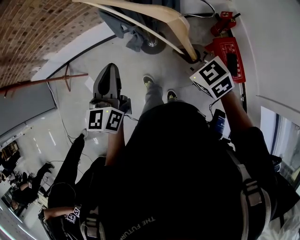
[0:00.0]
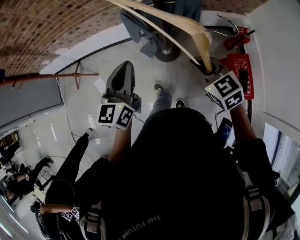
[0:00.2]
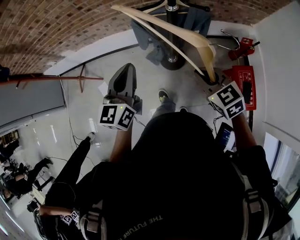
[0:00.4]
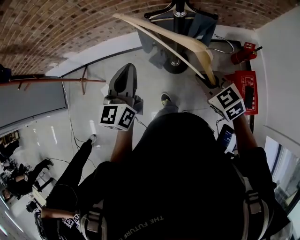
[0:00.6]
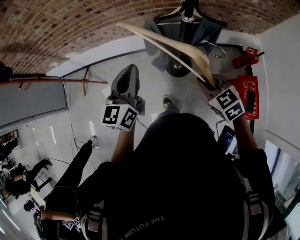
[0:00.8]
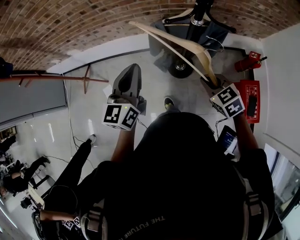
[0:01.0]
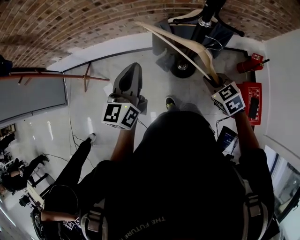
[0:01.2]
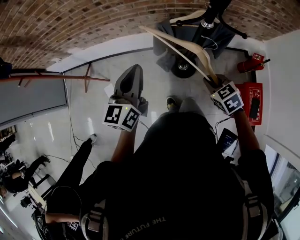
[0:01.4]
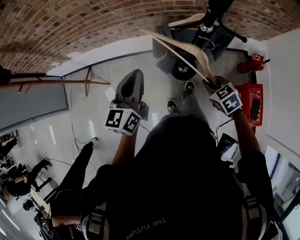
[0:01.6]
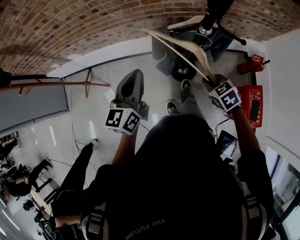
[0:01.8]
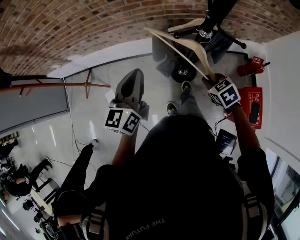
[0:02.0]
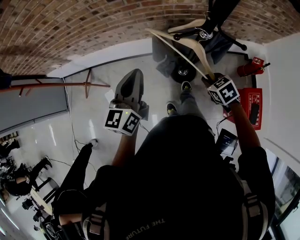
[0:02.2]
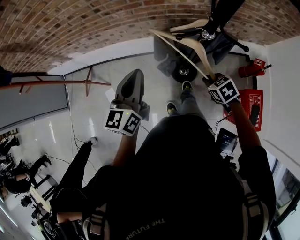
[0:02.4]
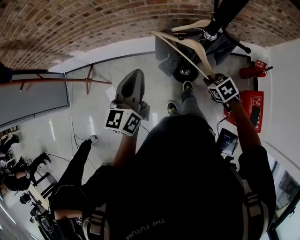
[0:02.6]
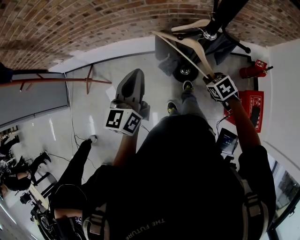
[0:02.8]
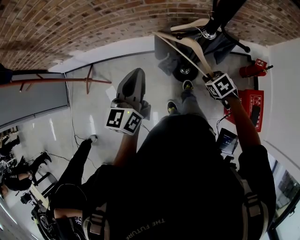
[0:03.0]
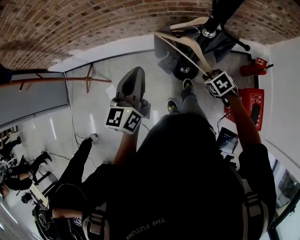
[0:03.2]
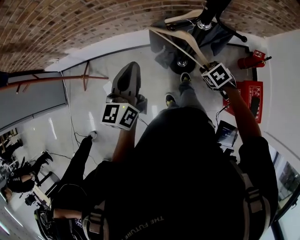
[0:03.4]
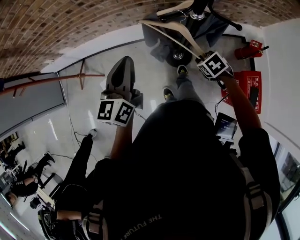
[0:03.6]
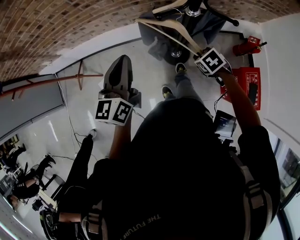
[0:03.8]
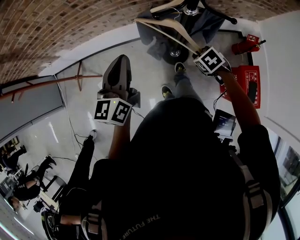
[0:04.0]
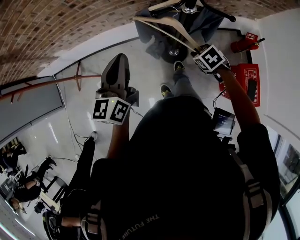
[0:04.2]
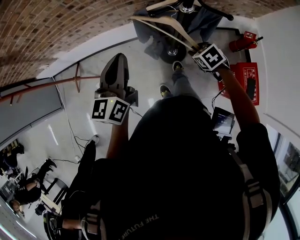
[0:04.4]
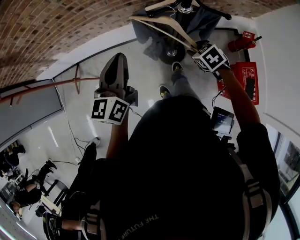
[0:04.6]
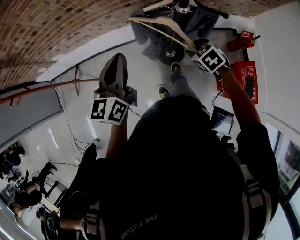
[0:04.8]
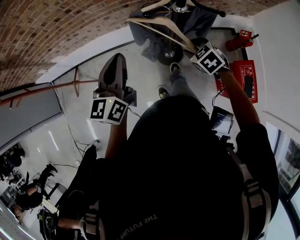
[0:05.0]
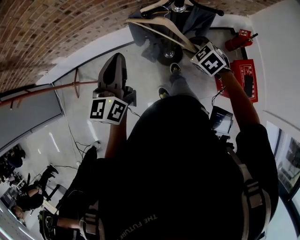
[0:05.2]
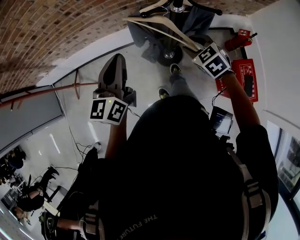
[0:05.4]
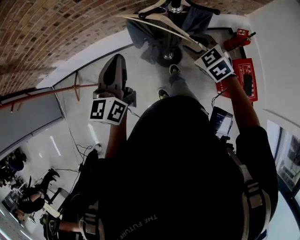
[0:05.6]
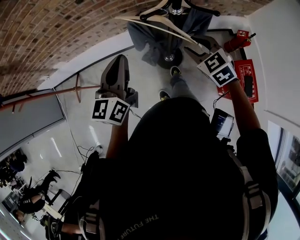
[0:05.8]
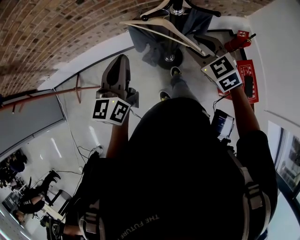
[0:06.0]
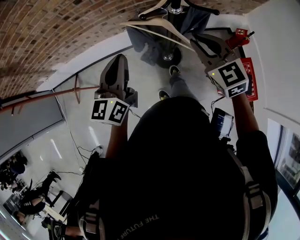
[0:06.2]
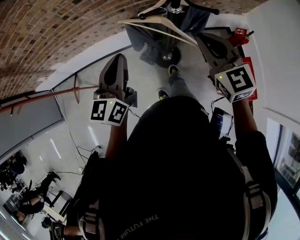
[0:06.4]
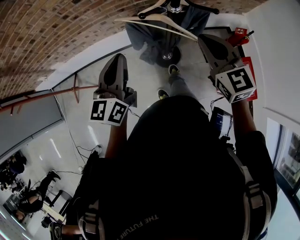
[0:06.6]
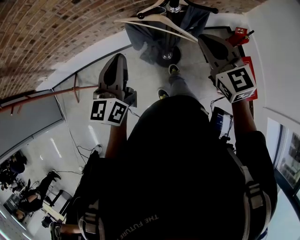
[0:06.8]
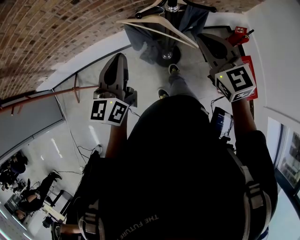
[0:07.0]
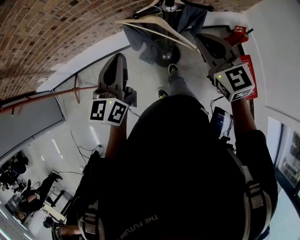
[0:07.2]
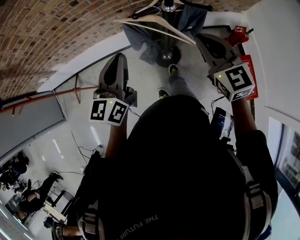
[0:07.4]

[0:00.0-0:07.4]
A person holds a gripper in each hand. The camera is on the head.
0:00.0 to 0:01.4: The right gripper heads forward, downward and to the left, covering some 20 cm; the left gripper goes approximately 25 cm forward and to the left.
0:01.4 to 0:03.0: The right gripper is displaced downward and forward by some 10 cm.
0:03.0 to 0:04.4: The grippers move only a little.
0:04.4 to 0:06.0: The right gripper heads upward, covering approximately 15 cm, swivels some 30 degrees, and opens.
0:06.0 to 0:07.4: The right gripper is displaced upward by approximately 5 cm, changes its angle by some 20 degrees, and closes.

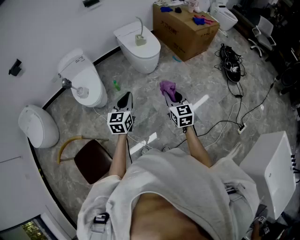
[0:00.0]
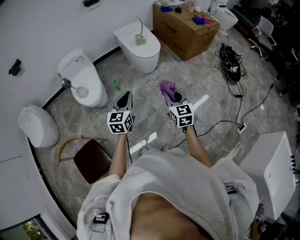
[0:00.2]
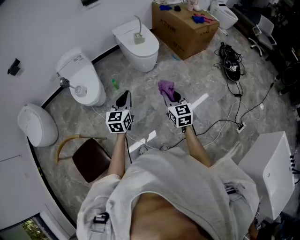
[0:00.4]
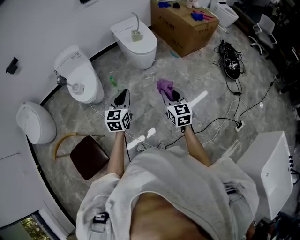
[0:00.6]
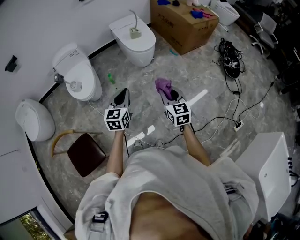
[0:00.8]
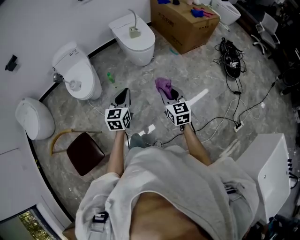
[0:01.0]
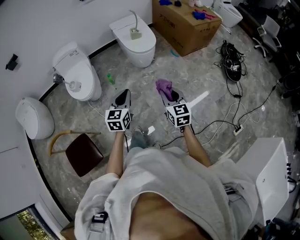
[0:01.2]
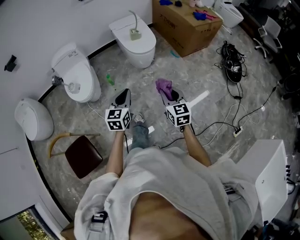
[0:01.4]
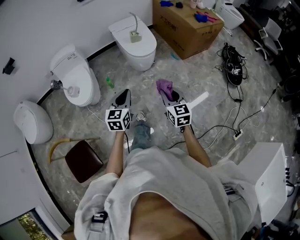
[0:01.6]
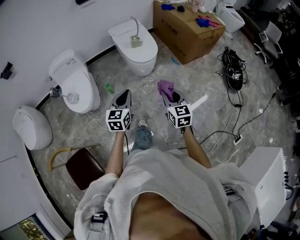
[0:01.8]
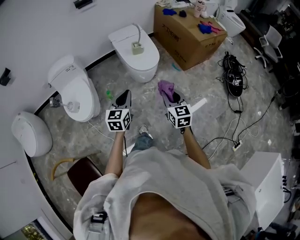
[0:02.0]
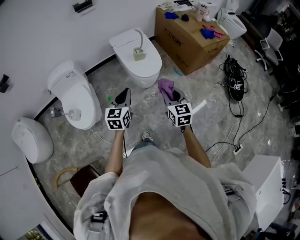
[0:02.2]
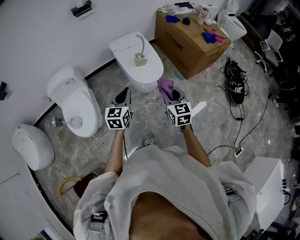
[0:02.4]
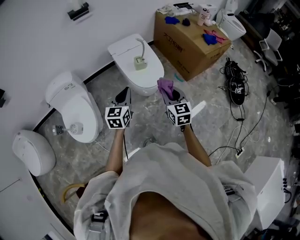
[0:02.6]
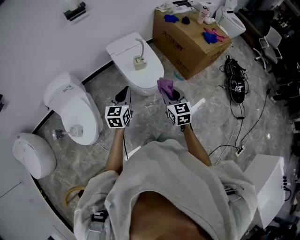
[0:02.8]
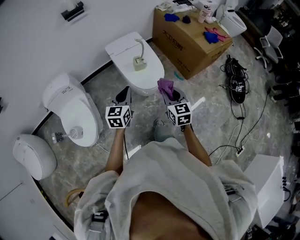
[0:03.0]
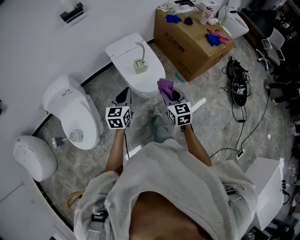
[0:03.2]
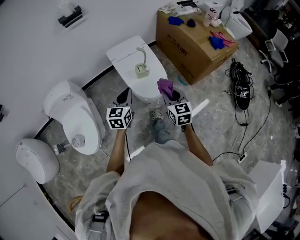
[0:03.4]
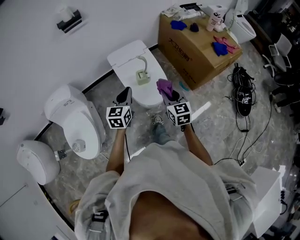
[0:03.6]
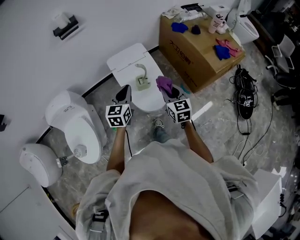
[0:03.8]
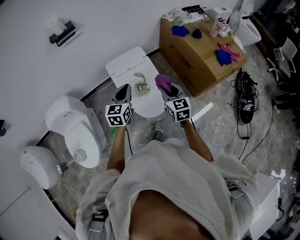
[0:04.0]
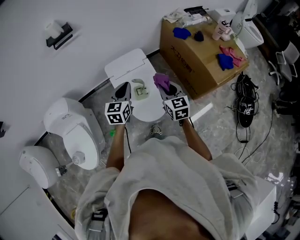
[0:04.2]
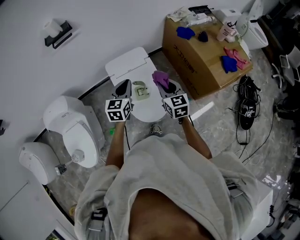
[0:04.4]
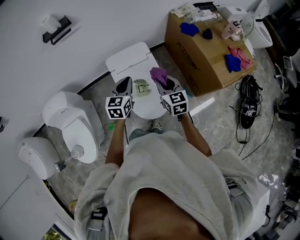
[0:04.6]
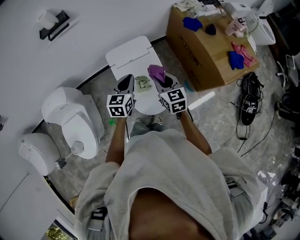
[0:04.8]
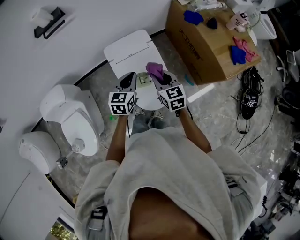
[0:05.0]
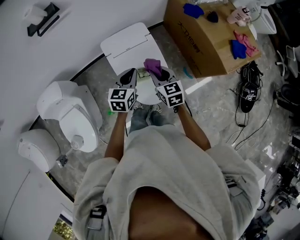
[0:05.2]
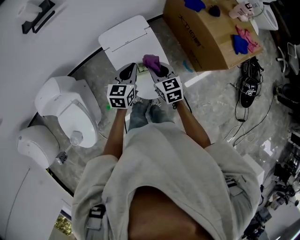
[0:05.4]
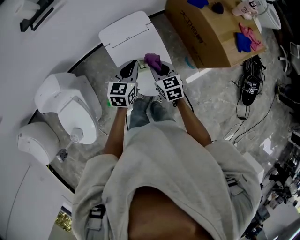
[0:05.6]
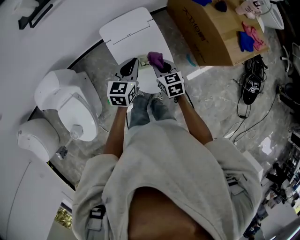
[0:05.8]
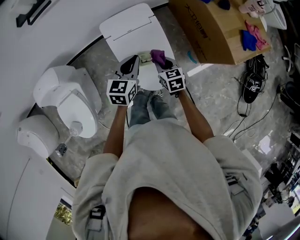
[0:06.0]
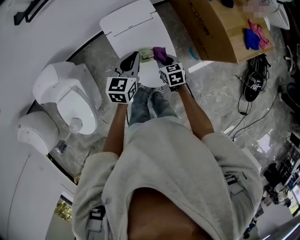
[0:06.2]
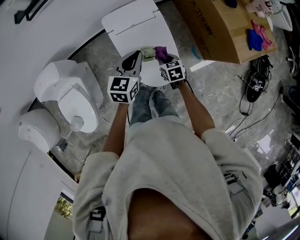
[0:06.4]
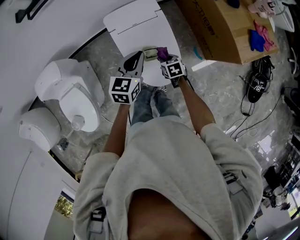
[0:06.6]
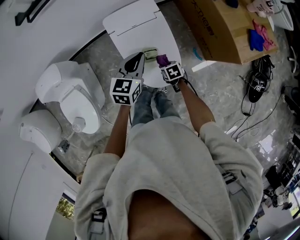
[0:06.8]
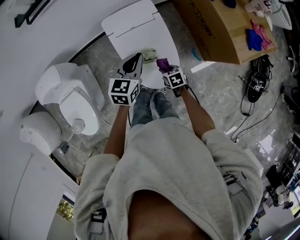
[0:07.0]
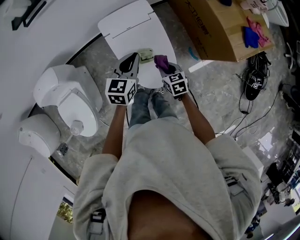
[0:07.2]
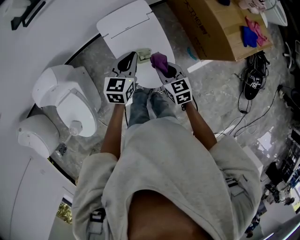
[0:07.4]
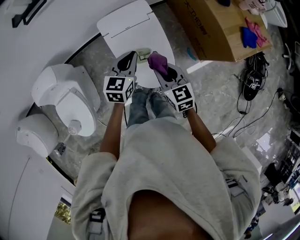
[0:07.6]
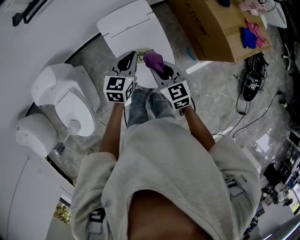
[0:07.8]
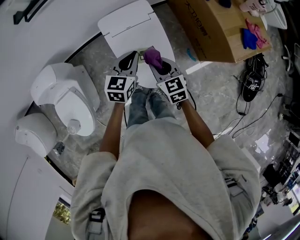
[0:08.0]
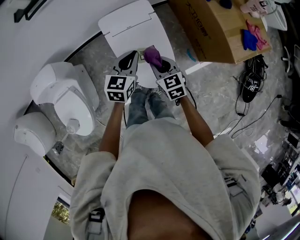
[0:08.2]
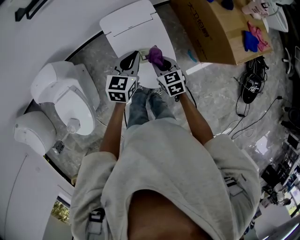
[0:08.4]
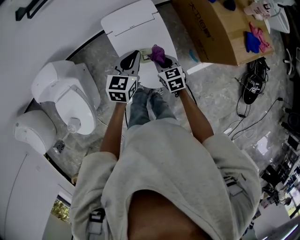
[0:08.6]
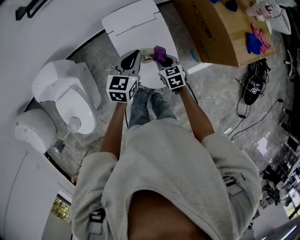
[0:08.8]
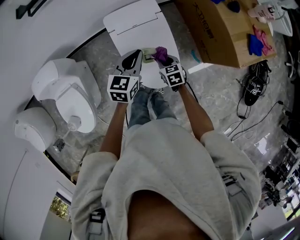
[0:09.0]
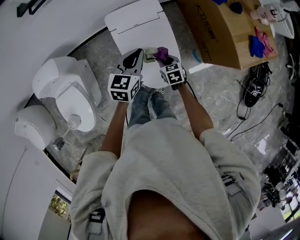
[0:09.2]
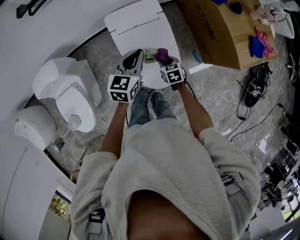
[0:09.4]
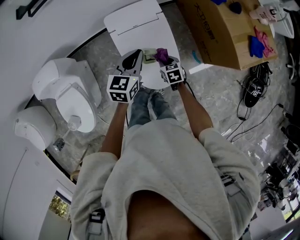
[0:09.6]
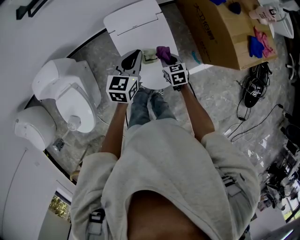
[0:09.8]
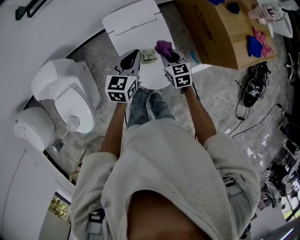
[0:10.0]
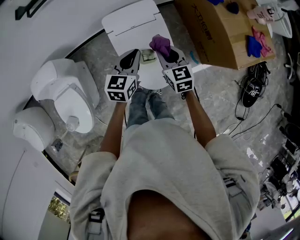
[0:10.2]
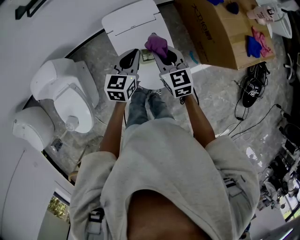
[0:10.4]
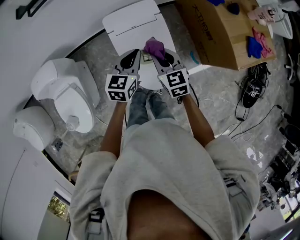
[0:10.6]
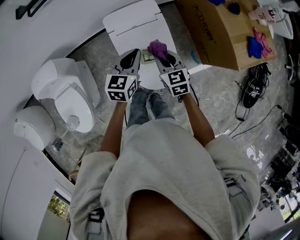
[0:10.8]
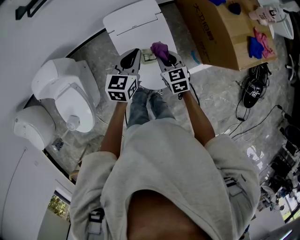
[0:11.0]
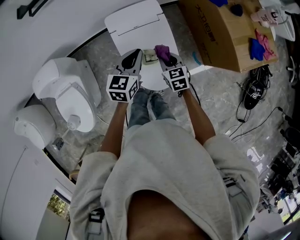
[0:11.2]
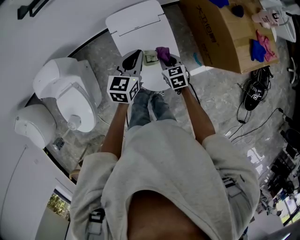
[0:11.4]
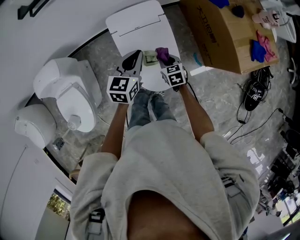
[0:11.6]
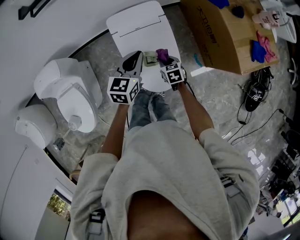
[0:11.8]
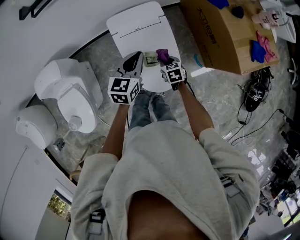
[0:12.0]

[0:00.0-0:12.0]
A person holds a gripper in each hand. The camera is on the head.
0:00.0 to 0:01.6: The left gripper travels to the right and forward by about 10 cm, while the right gripper is displaced forward and to the right by roughly 10 cm.
0:01.6 to 0:03.0: Both grippers travel together forward, about 35 cm.
0:03.0 to 0:04.4: The two grippers go approximately 35 cm forward.
0:04.4 to 0:06.0: The left gripper travels downward by roughly 5 cm; the right gripper heads downward, covering about 15 cm, and swivels roughly 20 degrees.
0:06.0 to 0:07.6: The right gripper moves upward, roughly 10 cm.
0:07.6 to 0:09.0: The right gripper shifts approximately 15 cm downward, and swivels approximately 20 degrees.
0:09.0 to 0:10.4: The right gripper moves upward, some 20 cm, and rotates some 20 degrees.
0:10.4 to 0:12.0: The right gripper heads downward, covering approximately 20 cm, and changes its angle by approximately 30 degrees.

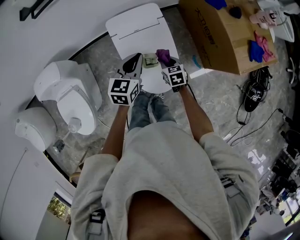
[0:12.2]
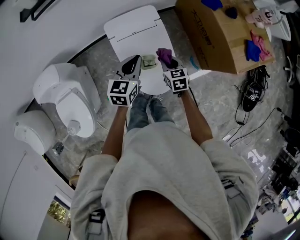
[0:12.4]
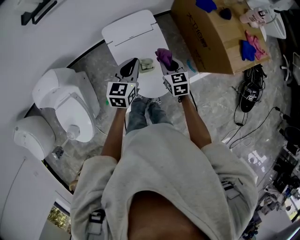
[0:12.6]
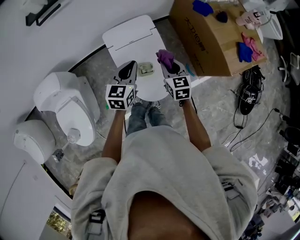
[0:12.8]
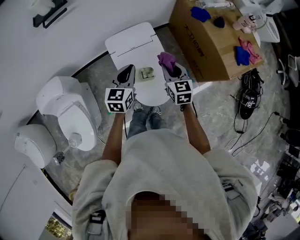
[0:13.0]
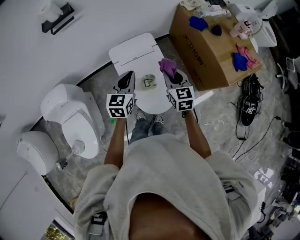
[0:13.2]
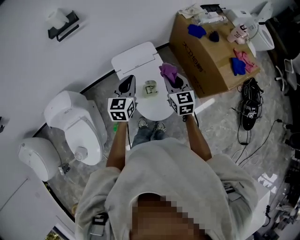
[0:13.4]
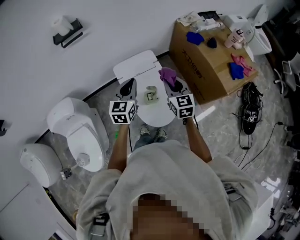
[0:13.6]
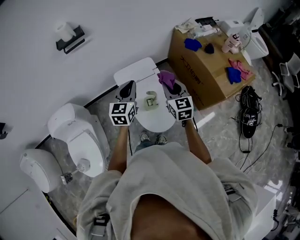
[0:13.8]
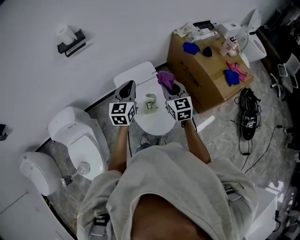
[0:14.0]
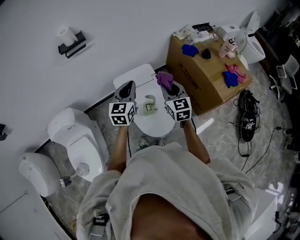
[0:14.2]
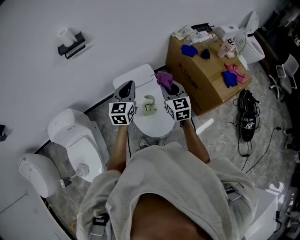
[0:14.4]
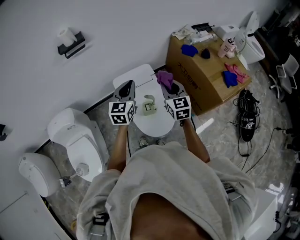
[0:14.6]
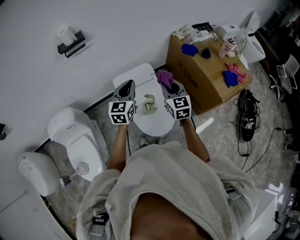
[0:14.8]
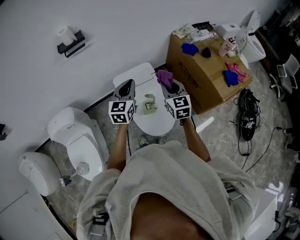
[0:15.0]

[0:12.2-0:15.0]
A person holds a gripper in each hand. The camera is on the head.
0:12.2 to 0:13.6: The left gripper shifts approximately 10 cm upward, while the right gripper travels upward by about 25 cm, and tilts its fingers some 30 degrees upward.
0:13.6 to 0:15.0: There are only small adjustments of the grippers.

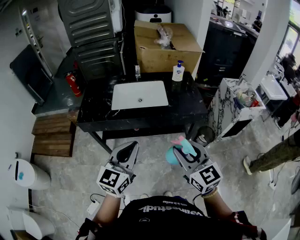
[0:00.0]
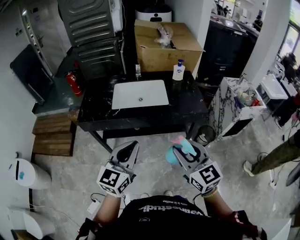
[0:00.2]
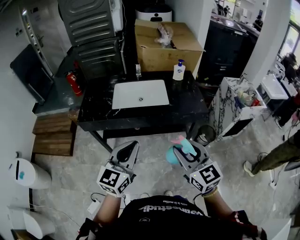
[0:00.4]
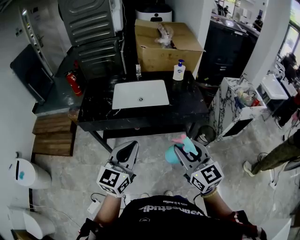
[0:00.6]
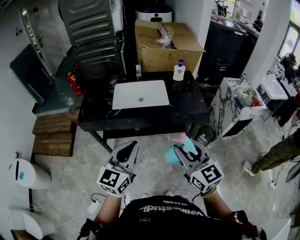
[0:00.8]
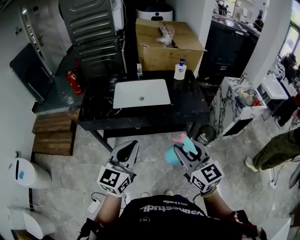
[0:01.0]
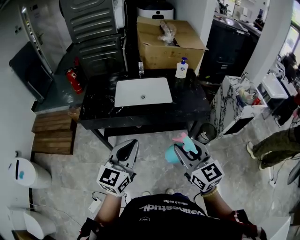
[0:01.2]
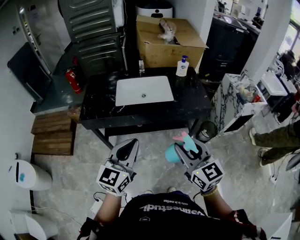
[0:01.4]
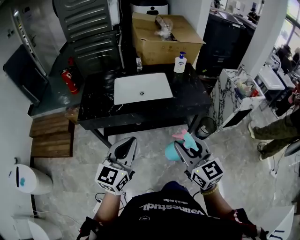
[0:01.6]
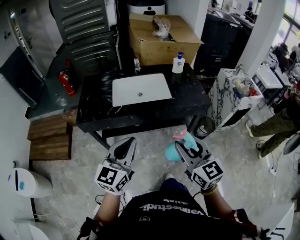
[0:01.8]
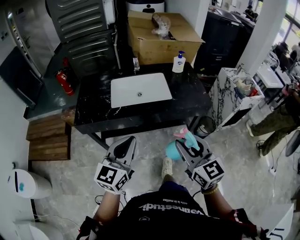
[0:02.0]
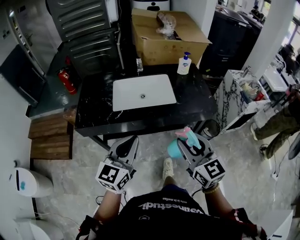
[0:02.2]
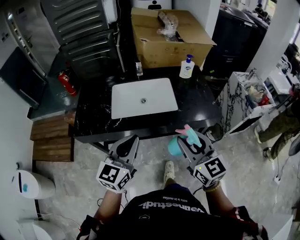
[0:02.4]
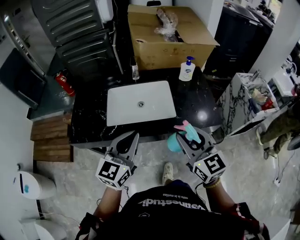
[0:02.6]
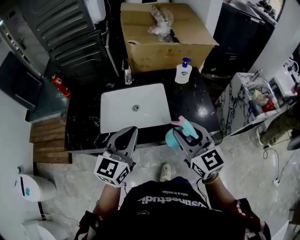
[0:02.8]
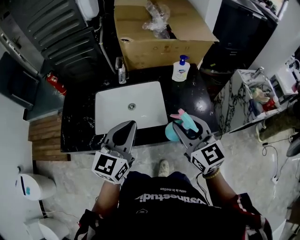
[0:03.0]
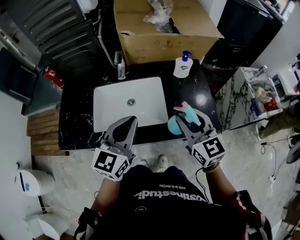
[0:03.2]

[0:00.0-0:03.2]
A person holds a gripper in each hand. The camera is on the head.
0:00.0 to 0:01.6: The grippers both shift to the left by about 5 cm.
0:01.6 to 0:03.2: The pair of grippers is taken forward, approximately 40 cm.
